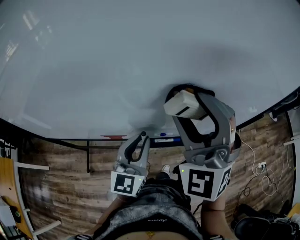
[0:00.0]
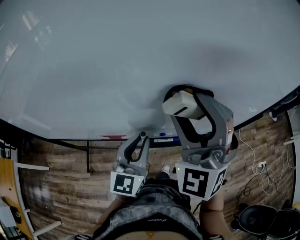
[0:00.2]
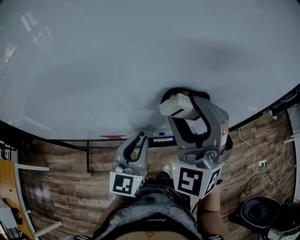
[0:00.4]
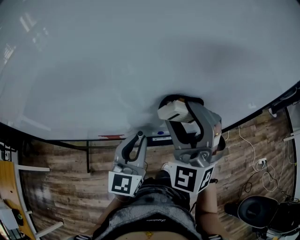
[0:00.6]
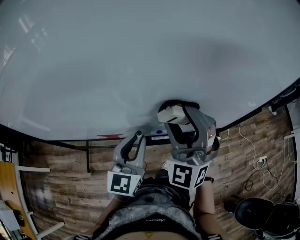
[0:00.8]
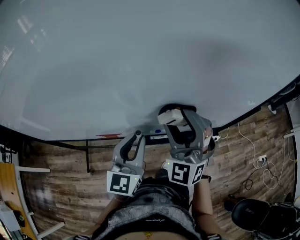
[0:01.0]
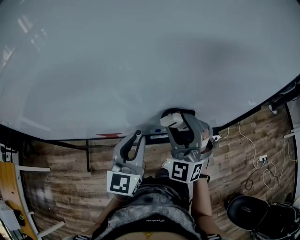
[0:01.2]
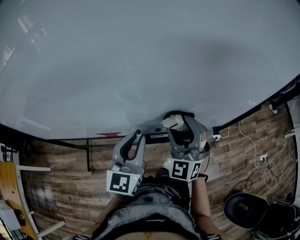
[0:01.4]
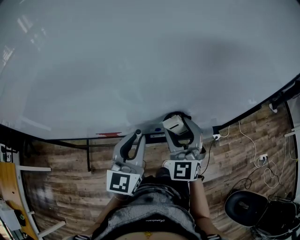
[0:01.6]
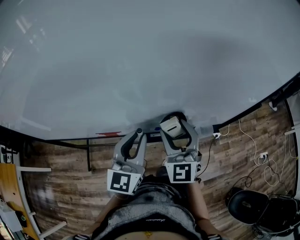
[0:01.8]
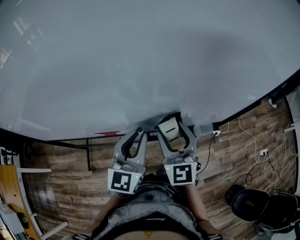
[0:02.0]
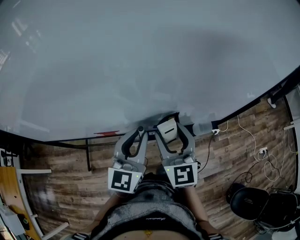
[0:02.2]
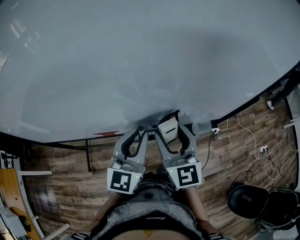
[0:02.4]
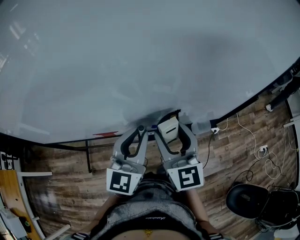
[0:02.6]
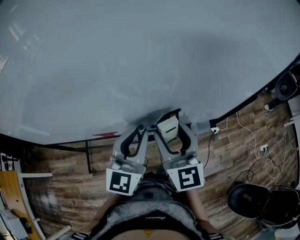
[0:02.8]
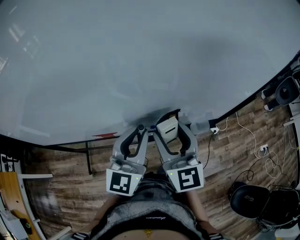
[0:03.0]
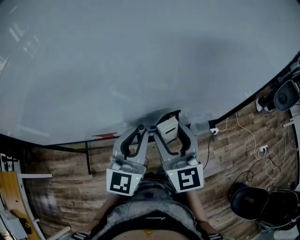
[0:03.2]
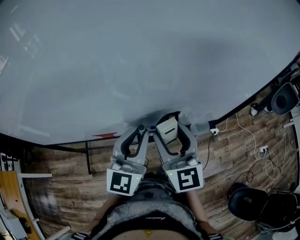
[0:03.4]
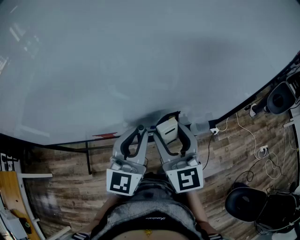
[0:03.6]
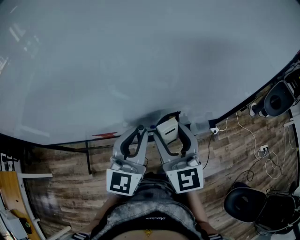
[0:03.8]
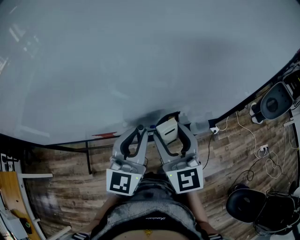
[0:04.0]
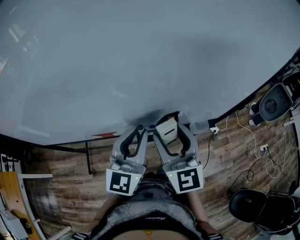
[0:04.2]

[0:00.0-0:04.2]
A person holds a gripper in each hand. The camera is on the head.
0:00.0 to 0:01.4: The right gripper travels downward by about 15 cm.
0:01.4 to 0:02.8: The right gripper rolls clockwise, seen from behind, by roughly 40 degrees.
0:02.8 to 0:04.2: The two grippers keep their place.

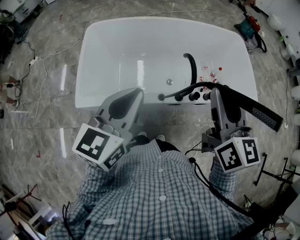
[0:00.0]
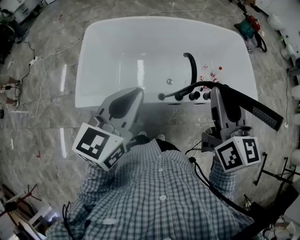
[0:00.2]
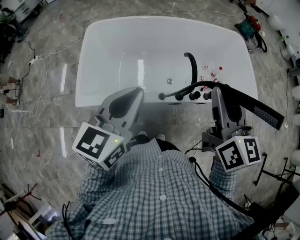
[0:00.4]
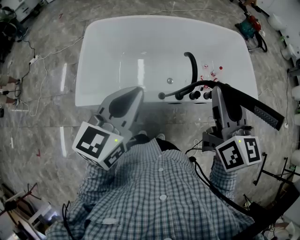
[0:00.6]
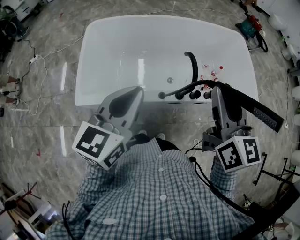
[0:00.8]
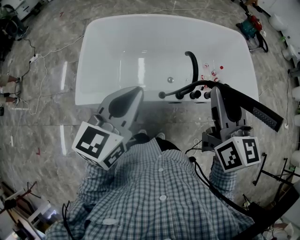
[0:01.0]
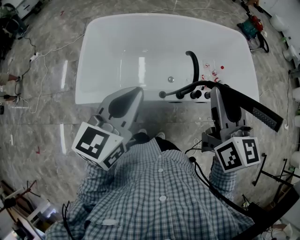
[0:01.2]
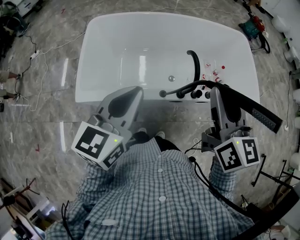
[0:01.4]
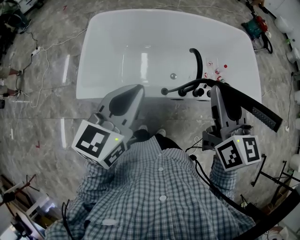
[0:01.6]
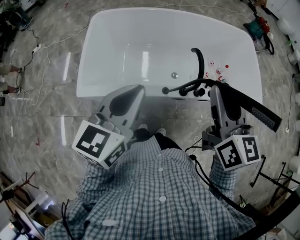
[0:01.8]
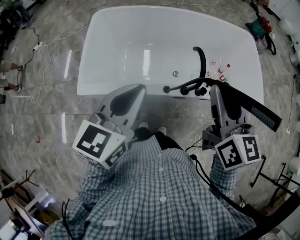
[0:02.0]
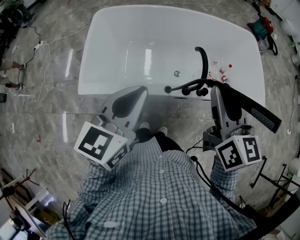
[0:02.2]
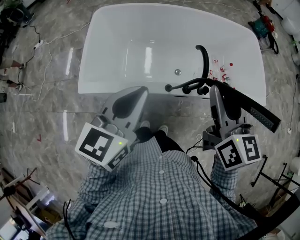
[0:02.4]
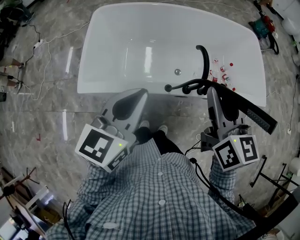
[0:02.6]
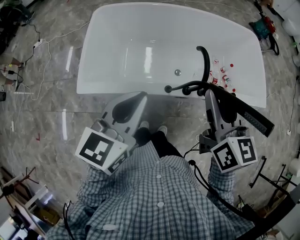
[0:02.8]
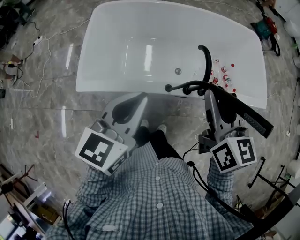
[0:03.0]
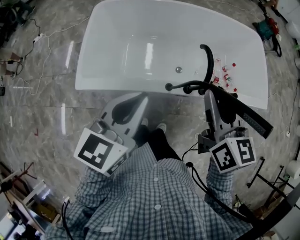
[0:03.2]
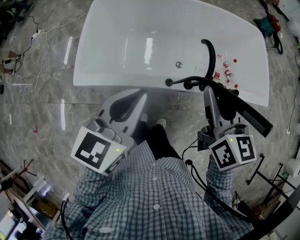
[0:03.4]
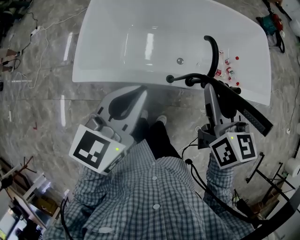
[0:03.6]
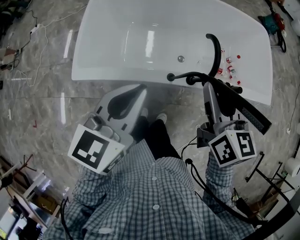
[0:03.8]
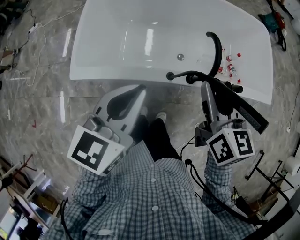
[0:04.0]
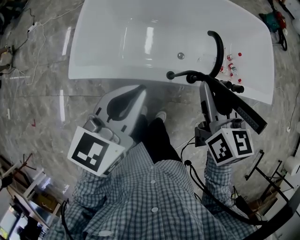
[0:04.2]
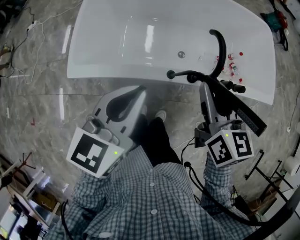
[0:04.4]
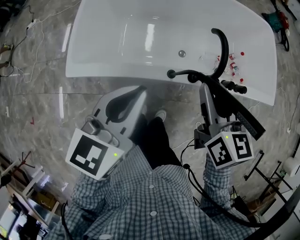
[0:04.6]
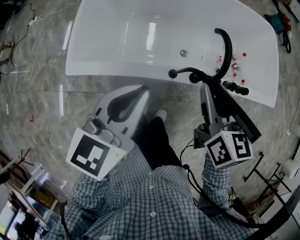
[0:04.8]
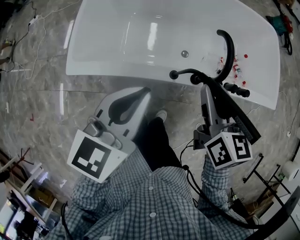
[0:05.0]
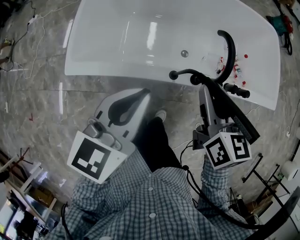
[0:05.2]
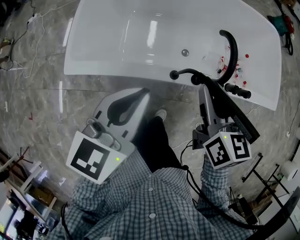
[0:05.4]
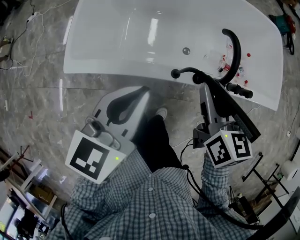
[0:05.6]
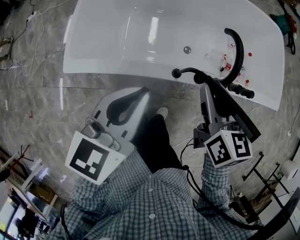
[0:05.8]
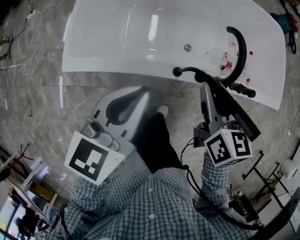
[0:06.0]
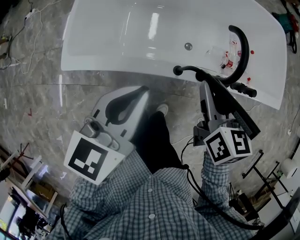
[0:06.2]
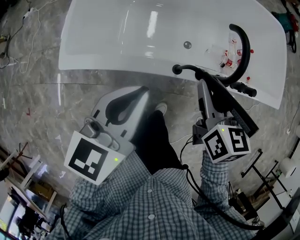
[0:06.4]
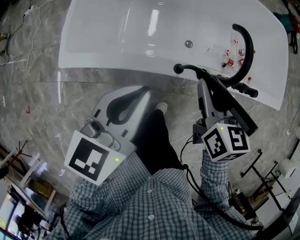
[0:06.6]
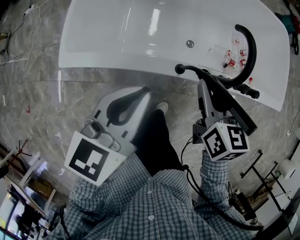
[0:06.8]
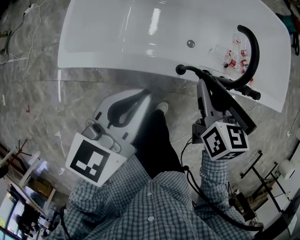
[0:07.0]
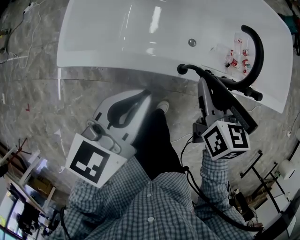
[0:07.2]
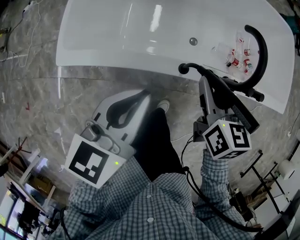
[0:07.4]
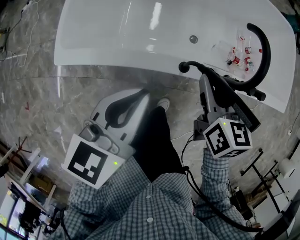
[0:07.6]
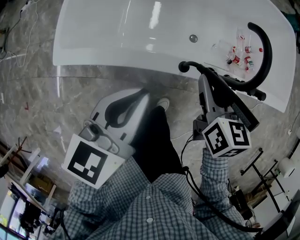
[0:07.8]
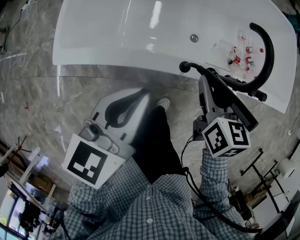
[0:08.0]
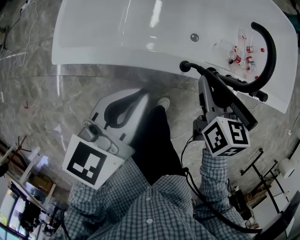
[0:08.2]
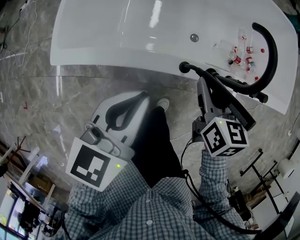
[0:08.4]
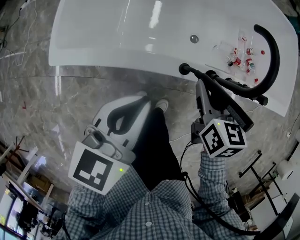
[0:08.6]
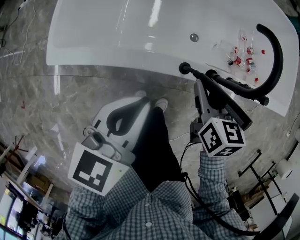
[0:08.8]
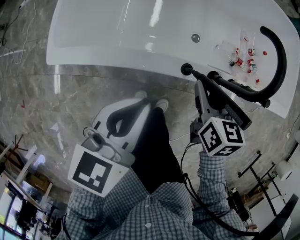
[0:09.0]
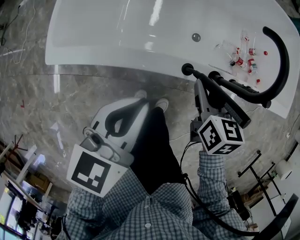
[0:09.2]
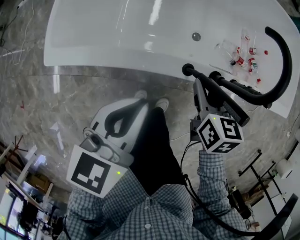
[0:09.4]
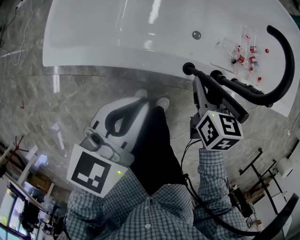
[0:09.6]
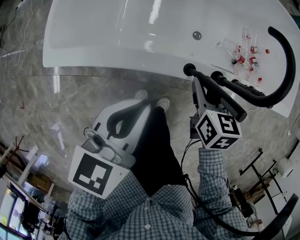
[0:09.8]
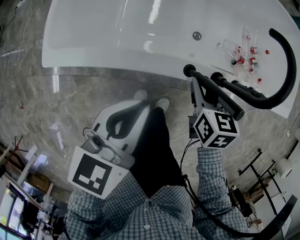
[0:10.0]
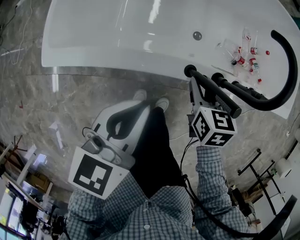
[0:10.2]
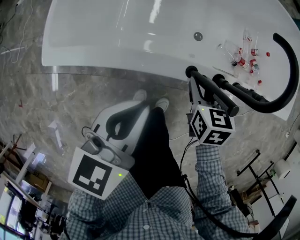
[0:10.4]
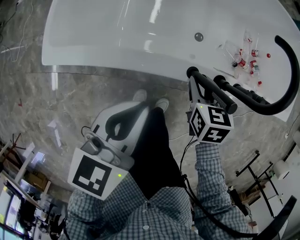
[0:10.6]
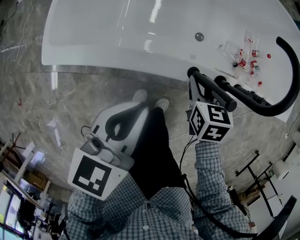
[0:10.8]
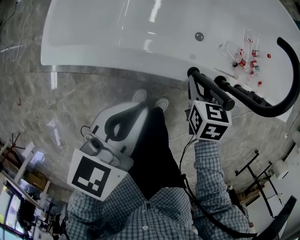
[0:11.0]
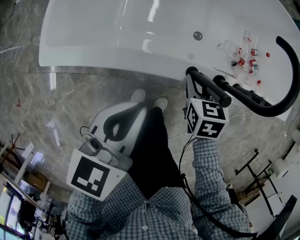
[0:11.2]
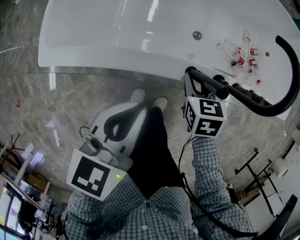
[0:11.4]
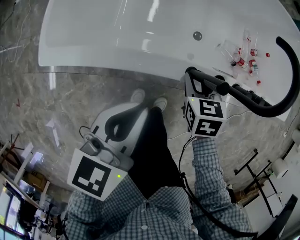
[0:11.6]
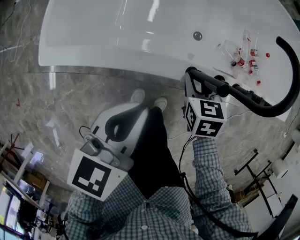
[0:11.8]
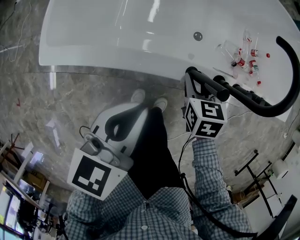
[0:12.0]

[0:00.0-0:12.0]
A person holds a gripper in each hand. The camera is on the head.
0:00.0 to 0:01.6: The grippers stay close to where they were, moving slightly.
0:01.6 to 0:03.0: The right gripper ends up approximately 5 cm from where it was.
0:03.0 to 0:04.4: The left gripper is displaced downward by about 5 cm; the right gripper is displaced downward by about 10 cm.
0:04.4 to 0:06.0: Both grippers move downward, roughly 5 cm.
0:06.0 to 0:07.6: Both grippers move downward, roughly 10 cm.
0:07.6 to 0:09.0: The left gripper moves downward, roughly 5 cm. Meanwhile the right gripper is displaced downward by about 10 cm.
0:09.0 to 0:10.4: The right gripper moves downward, some 10 cm.
0:10.4 to 0:12.0: The grippers move only a little.

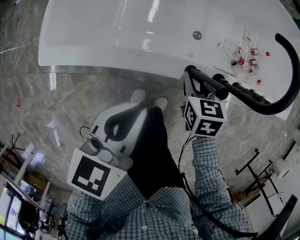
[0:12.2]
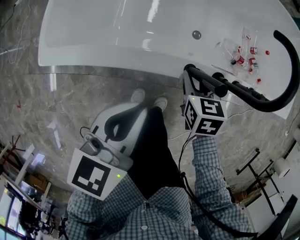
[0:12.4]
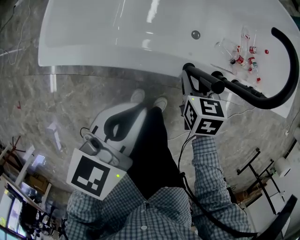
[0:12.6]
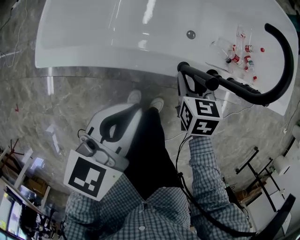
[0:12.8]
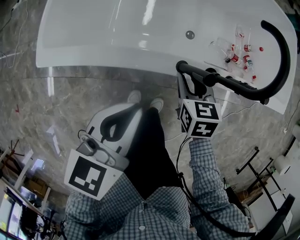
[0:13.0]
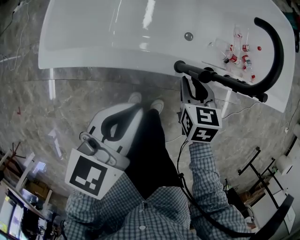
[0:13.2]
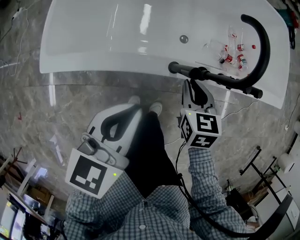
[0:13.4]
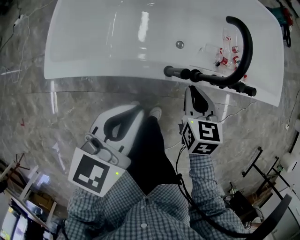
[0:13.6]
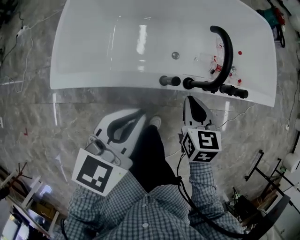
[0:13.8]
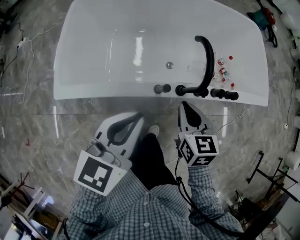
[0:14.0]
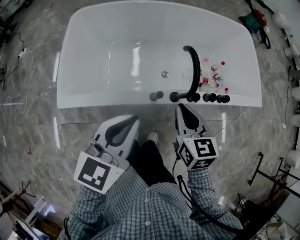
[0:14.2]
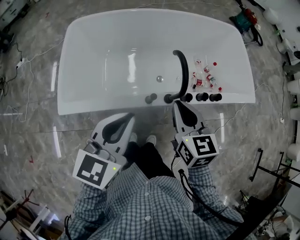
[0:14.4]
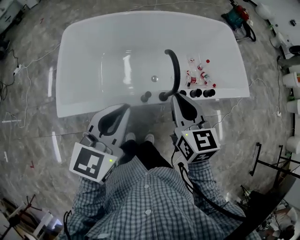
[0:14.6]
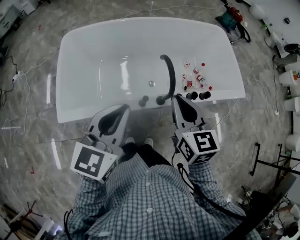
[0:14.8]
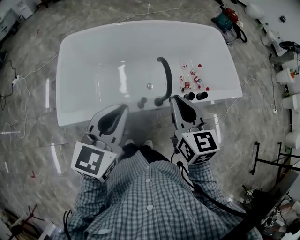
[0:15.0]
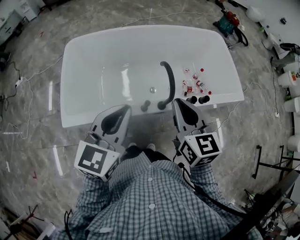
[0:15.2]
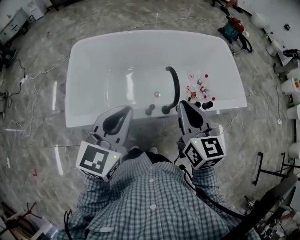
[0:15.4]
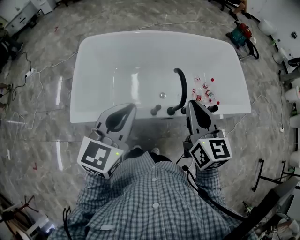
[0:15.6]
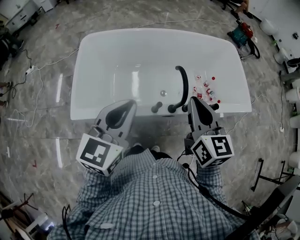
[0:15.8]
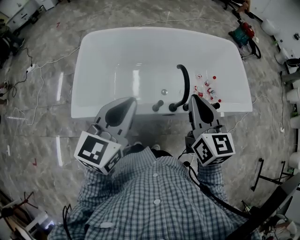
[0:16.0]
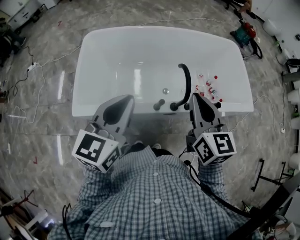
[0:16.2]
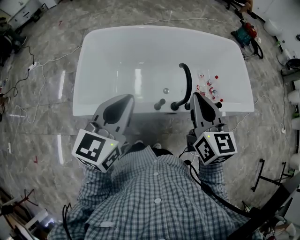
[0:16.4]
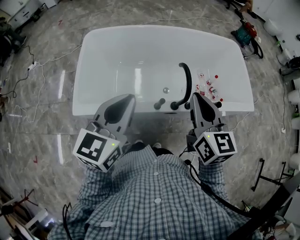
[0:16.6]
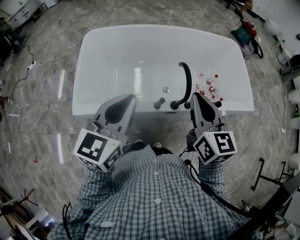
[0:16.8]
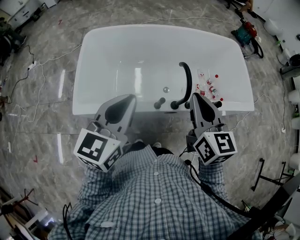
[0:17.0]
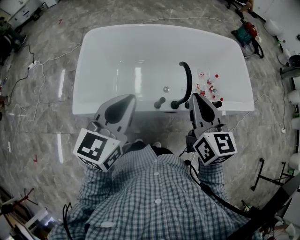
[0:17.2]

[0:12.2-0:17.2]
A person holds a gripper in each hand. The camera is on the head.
0:12.2 to 0:13.8: Both grippers move upward and to the right, roughly 15 cm. The right gripper closes up.
0:13.8 to 0:15.6: The grippers both shift upward by about 25 cm. The right gripper turns by roughly 30 degrees.
0:15.6 to 0:17.2: The grippers move only a little.

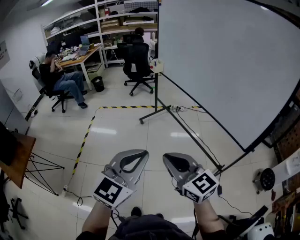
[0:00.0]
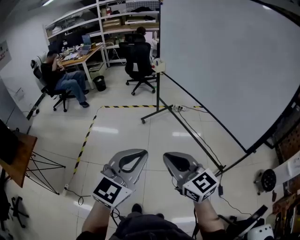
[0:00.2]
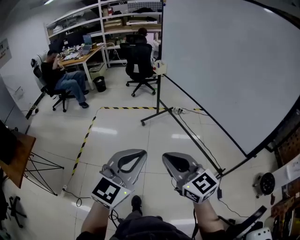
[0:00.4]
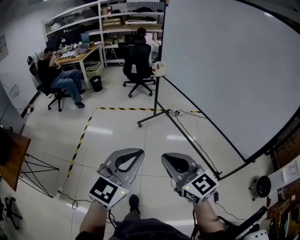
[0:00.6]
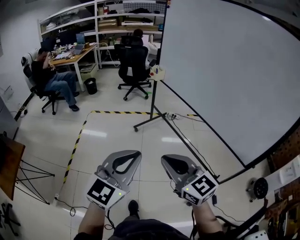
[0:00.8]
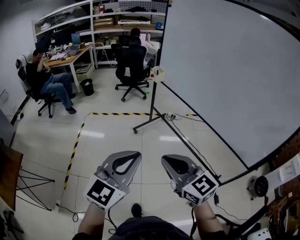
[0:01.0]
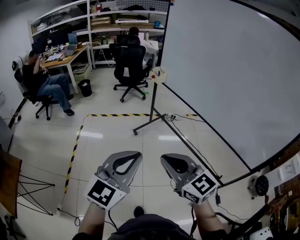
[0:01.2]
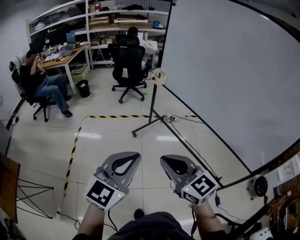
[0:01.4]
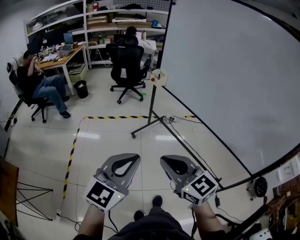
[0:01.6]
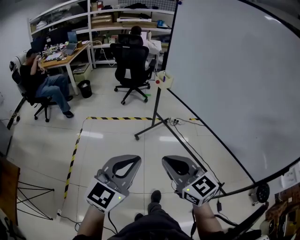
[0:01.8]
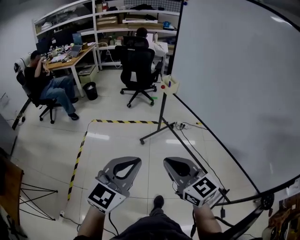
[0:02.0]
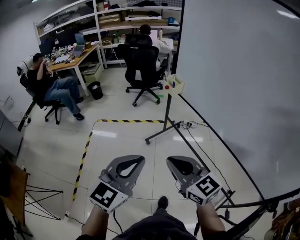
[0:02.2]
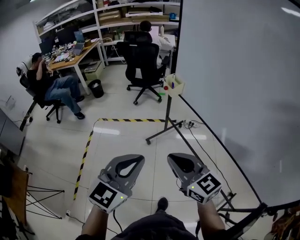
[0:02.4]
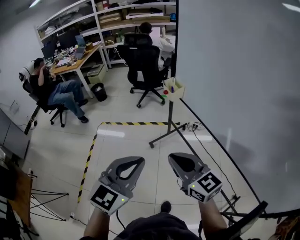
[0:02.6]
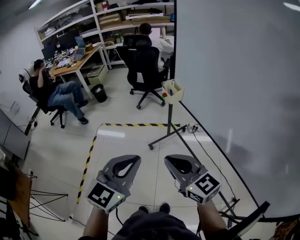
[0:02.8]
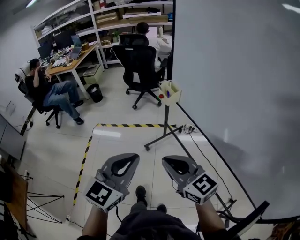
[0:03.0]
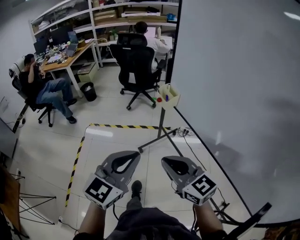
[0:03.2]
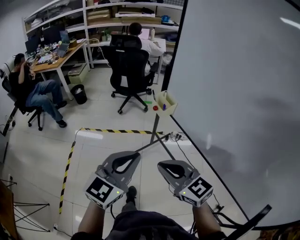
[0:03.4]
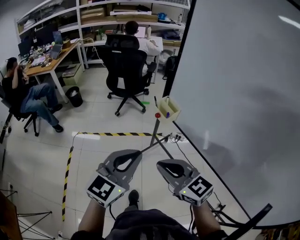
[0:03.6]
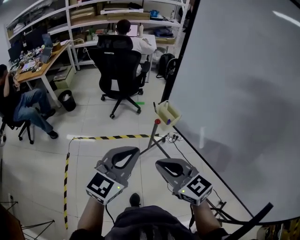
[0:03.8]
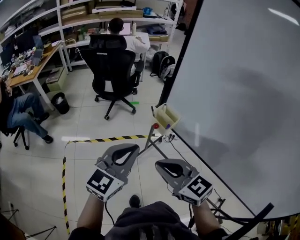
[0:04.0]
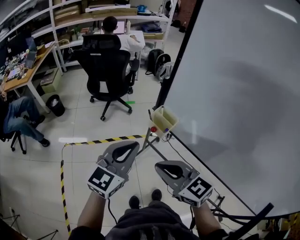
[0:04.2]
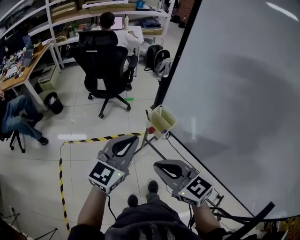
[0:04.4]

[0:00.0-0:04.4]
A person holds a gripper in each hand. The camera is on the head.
0:00.0 to 0:01.4: Both grippers travel together forward and to the left, some 25 cm.
0:01.4 to 0:03.0: The two grippers go approximately 30 cm forward.
0:03.0 to 0:04.4: Both grippers move forward, about 30 cm.
